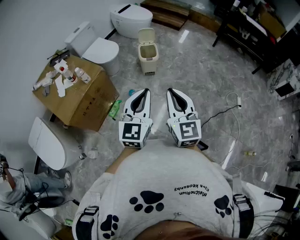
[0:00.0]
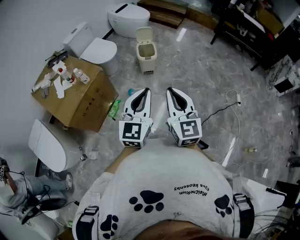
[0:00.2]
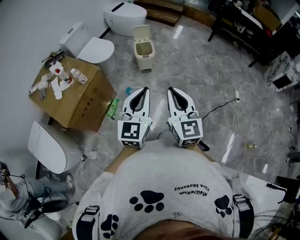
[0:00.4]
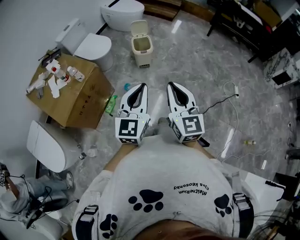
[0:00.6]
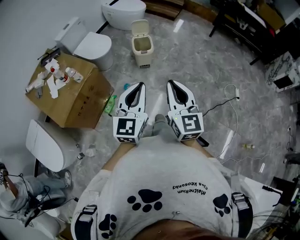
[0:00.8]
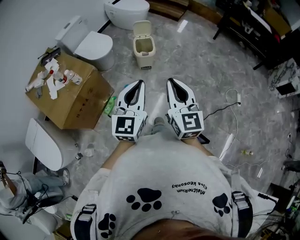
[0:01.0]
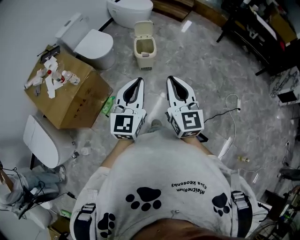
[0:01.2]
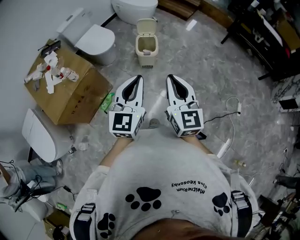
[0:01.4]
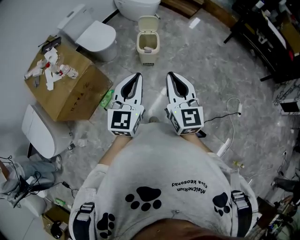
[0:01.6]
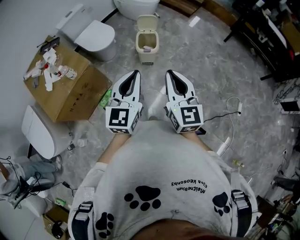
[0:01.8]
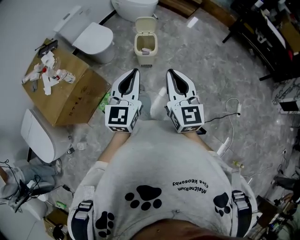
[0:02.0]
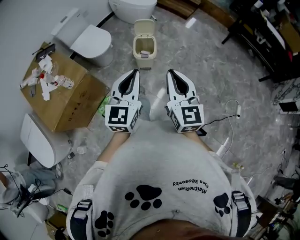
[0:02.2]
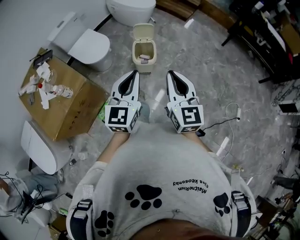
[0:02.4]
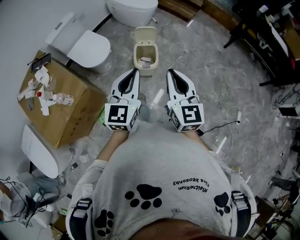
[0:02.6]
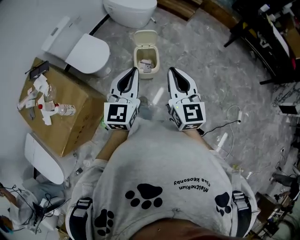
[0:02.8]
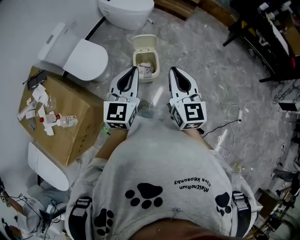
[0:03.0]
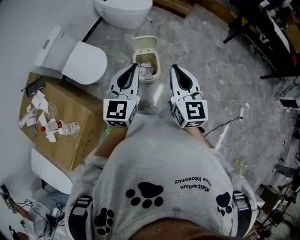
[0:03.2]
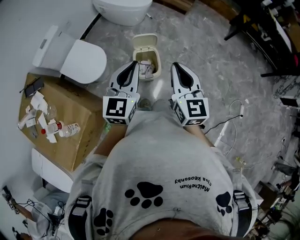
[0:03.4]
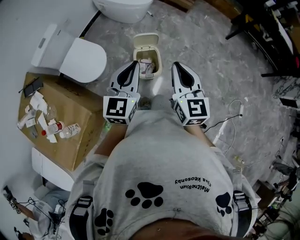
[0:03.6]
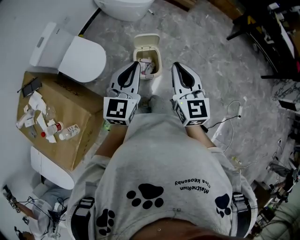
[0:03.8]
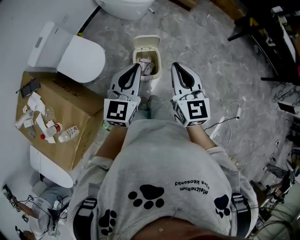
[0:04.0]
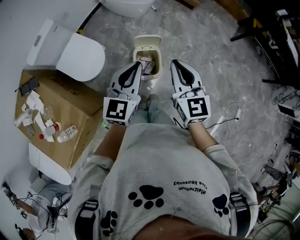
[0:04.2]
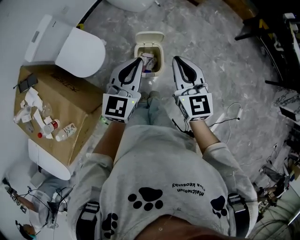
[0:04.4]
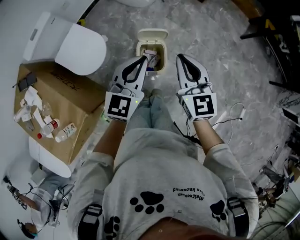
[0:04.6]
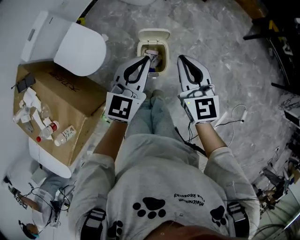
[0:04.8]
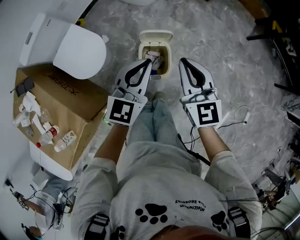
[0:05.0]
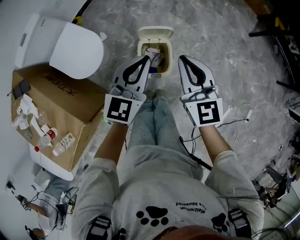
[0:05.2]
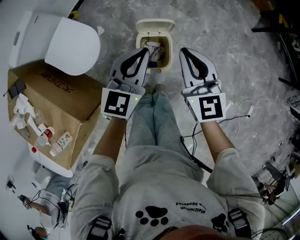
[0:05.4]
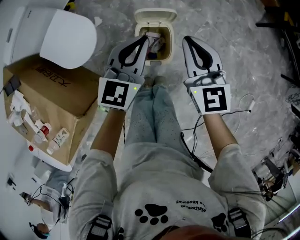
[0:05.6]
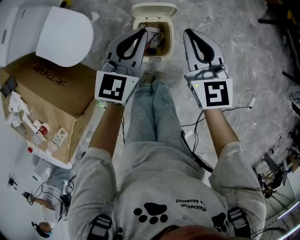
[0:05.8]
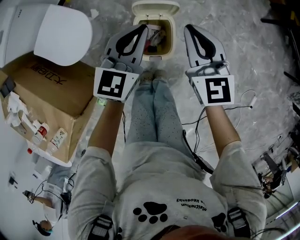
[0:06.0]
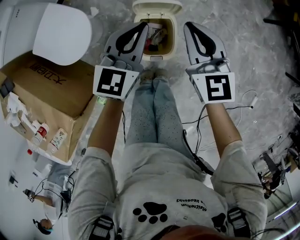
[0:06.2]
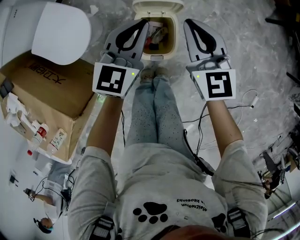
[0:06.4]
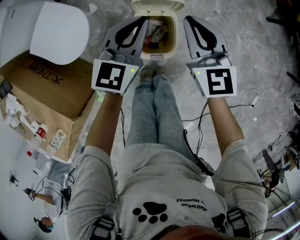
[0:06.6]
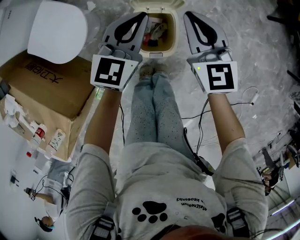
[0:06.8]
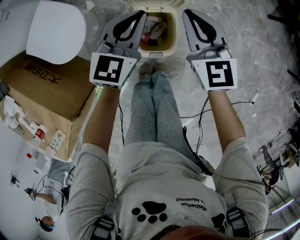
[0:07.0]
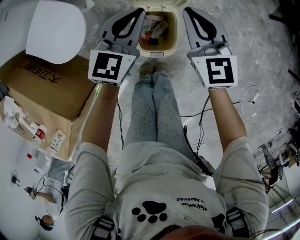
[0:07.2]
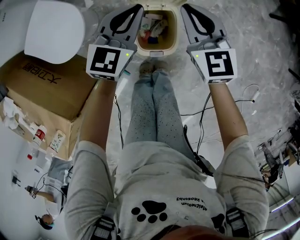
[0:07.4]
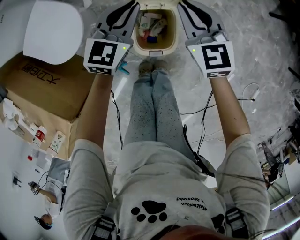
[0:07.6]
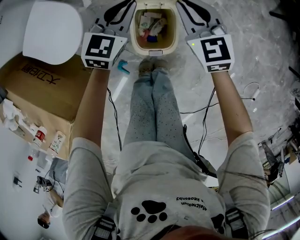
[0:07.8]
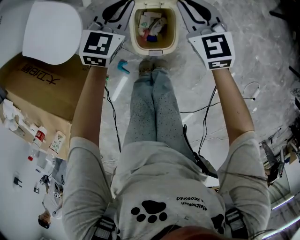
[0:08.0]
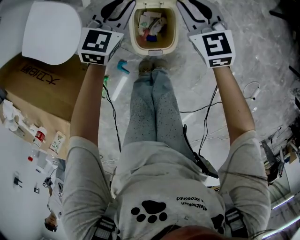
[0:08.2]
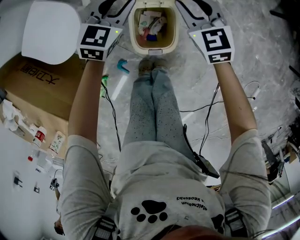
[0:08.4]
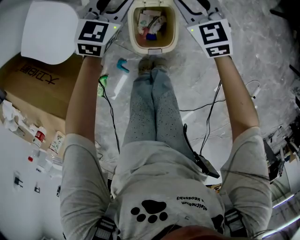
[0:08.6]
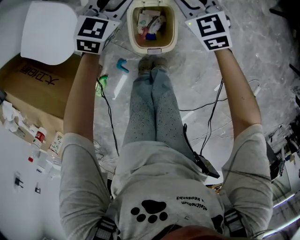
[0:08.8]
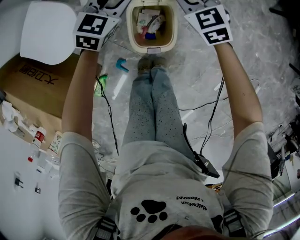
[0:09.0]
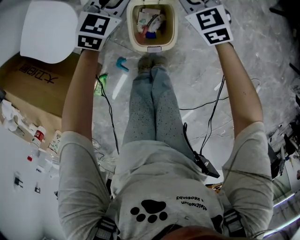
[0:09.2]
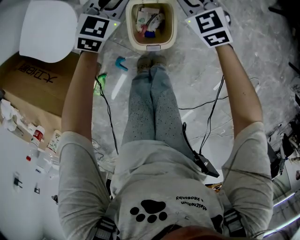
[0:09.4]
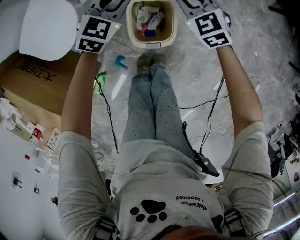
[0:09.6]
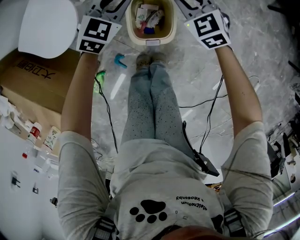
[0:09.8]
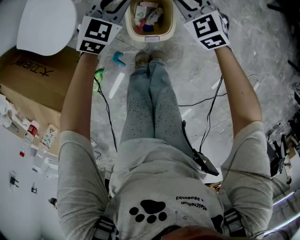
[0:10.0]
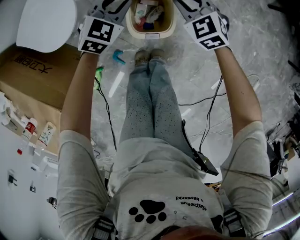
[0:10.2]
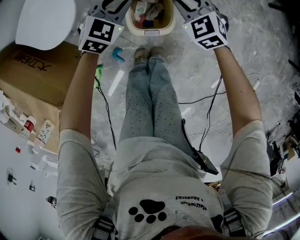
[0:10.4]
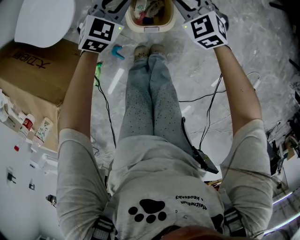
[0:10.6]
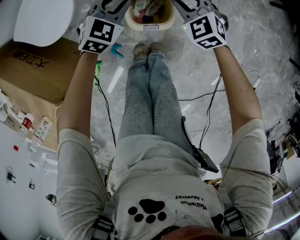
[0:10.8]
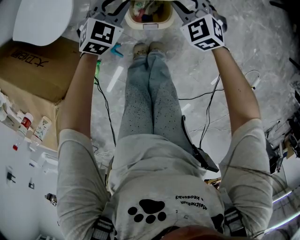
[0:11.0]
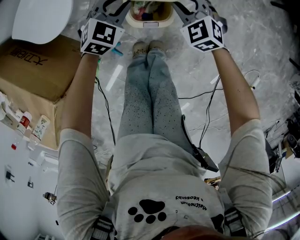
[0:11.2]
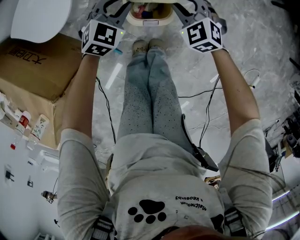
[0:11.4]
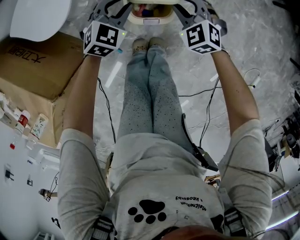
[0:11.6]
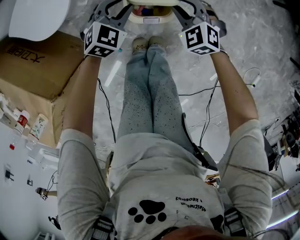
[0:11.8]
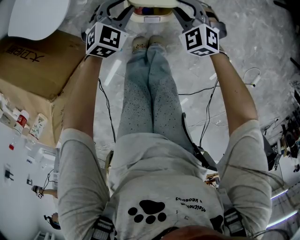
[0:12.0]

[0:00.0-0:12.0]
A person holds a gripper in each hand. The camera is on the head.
0:00.0 to 0:01.6: Both grippers travel together forward, roughly 20 cm.
0:01.6 to 0:03.0: Both grippers travel together forward, roughly 35 cm.
0:03.0 to 0:04.4: Both grippers move forward, about 20 cm.
0:04.4 to 0:06.0: Both grippers move downward and forward, some 25 cm.
0:06.0 to 0:07.6: Both grippers move downward and forward, approximately 15 cm.
0:07.6 to 0:09.0: The right gripper goes about 5 cm downward, and opens. The left gripper ends up some 5 cm from where it was, and opens.
0:09.0 to 0:10.4: Both grippers travel together backward, about 10 cm.
0:10.4 to 0:12.0: Both grippers travel together backward and downward, roughly 10 cm.

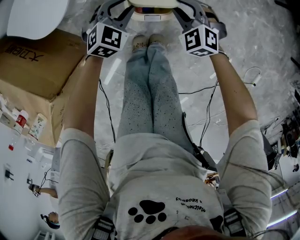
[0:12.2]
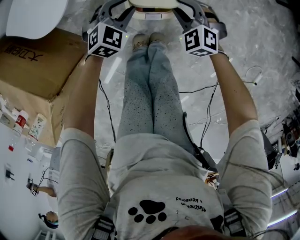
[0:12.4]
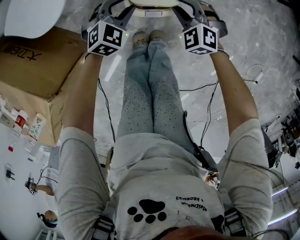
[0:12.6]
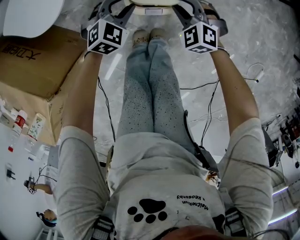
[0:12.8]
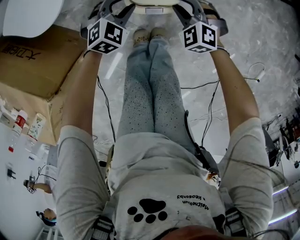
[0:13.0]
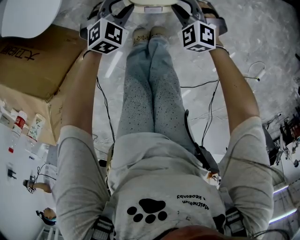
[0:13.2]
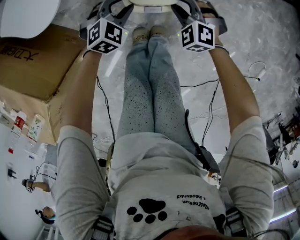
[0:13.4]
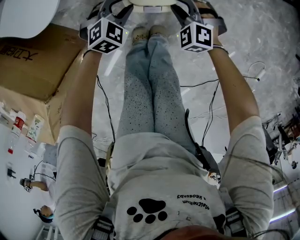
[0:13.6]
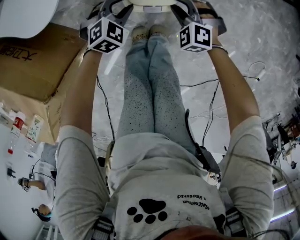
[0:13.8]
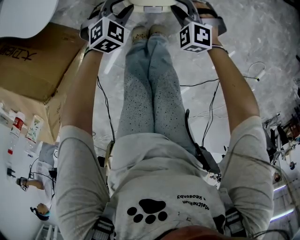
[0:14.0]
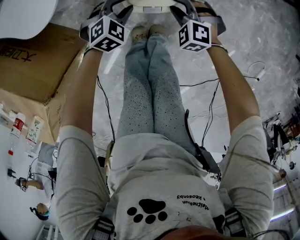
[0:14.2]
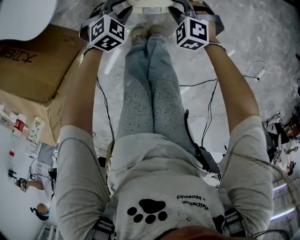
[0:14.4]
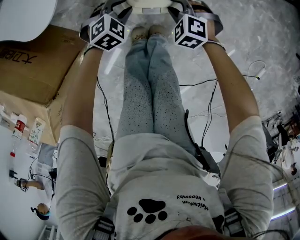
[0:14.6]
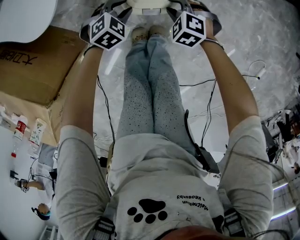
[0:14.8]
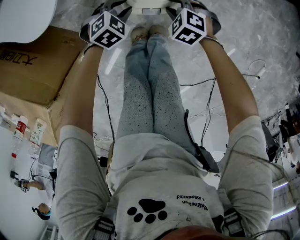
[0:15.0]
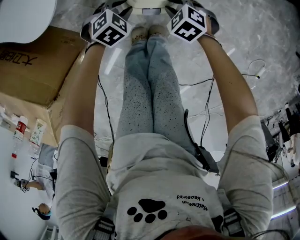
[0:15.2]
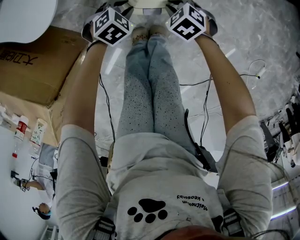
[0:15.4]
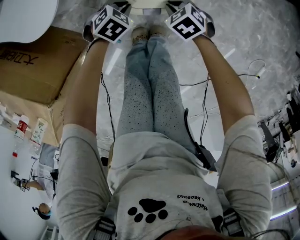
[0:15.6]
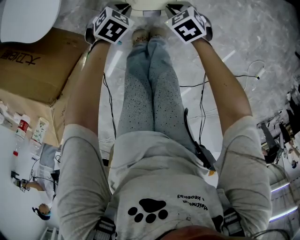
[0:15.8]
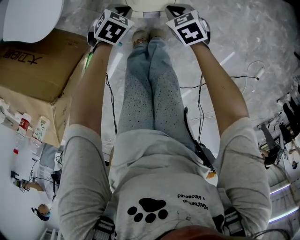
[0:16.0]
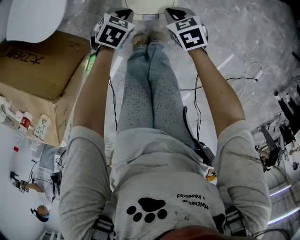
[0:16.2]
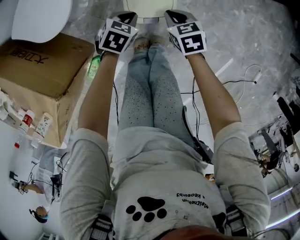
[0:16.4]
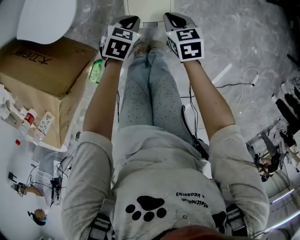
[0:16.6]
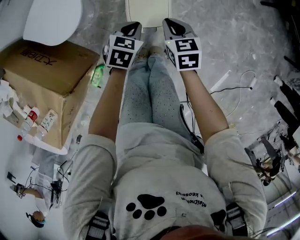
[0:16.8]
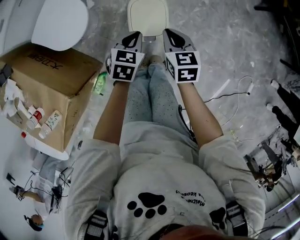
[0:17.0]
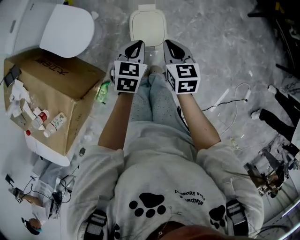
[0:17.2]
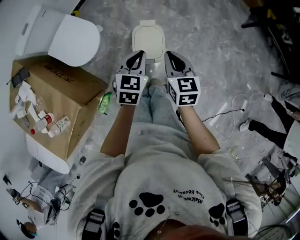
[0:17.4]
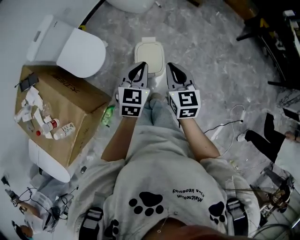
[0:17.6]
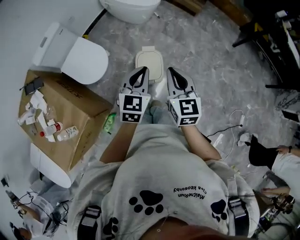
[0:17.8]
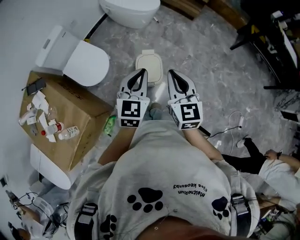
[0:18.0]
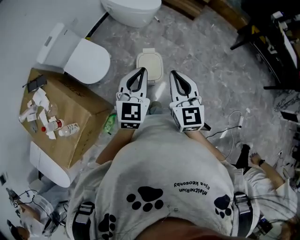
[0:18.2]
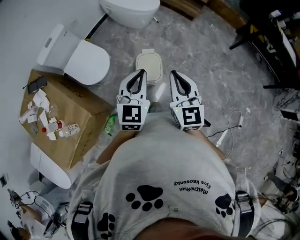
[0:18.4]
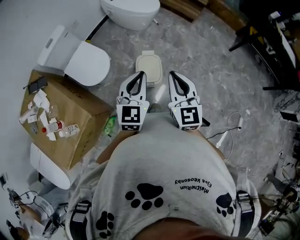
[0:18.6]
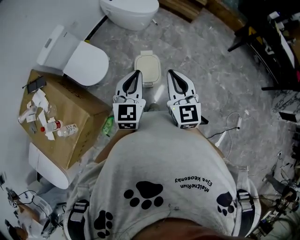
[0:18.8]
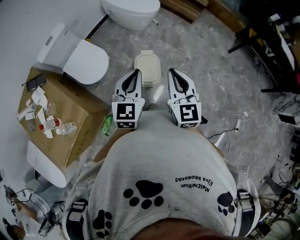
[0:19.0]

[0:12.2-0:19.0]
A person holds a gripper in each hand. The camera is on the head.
0:12.2 to 0:13.6: Both grippers travel together downward, some 5 cm.
0:13.6 to 0:15.0: The right gripper changes its angle by some 20 degrees.
0:15.0 to 0:16.2: The right gripper heads upward, covering some 5 cm, rotates around the line of its fingers by some 40 degrees, clockwise from behind, and closes up, while the left gripper swivels approximately 20 degrees, and closes up.
0:16.2 to 0:17.6: Both grippers travel together upward, roughly 50 cm. The right gripper angles its fingers upward, by approximately 30 degrees, while the left gripper points its fingers some 30 degrees further upward.
0:17.6 to 0:19.0: Both grippers move upward and backward, about 15 cm. The right gripper swivels about 20 degrees.

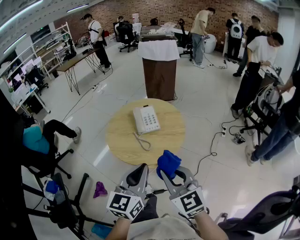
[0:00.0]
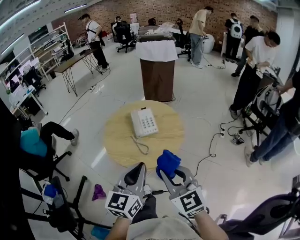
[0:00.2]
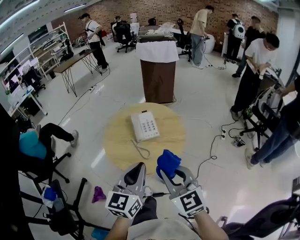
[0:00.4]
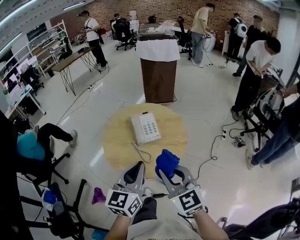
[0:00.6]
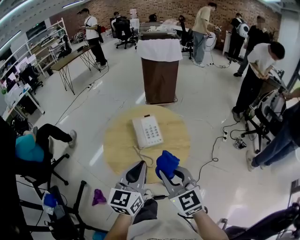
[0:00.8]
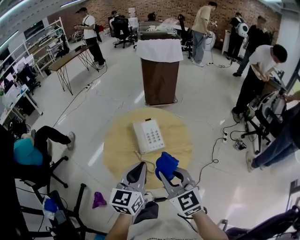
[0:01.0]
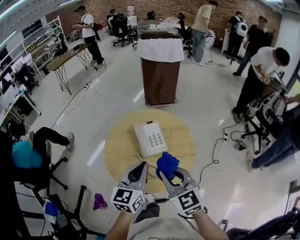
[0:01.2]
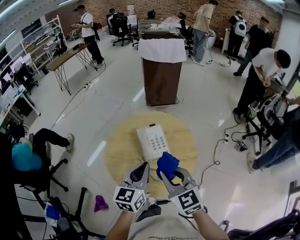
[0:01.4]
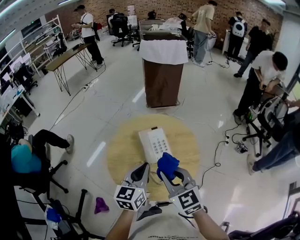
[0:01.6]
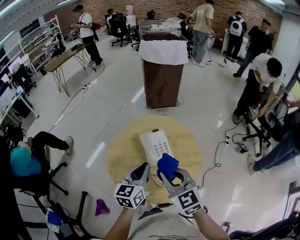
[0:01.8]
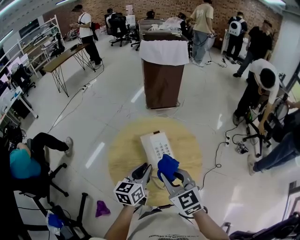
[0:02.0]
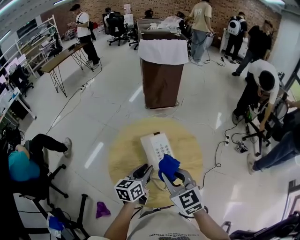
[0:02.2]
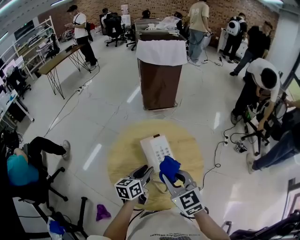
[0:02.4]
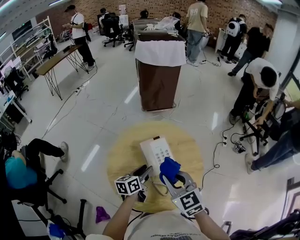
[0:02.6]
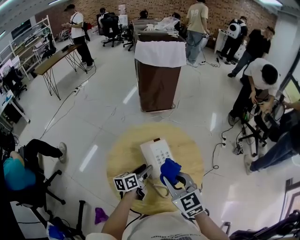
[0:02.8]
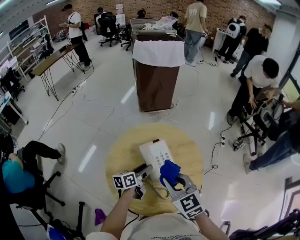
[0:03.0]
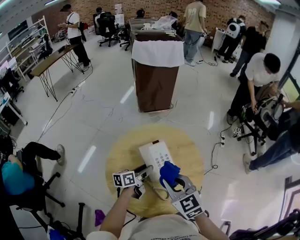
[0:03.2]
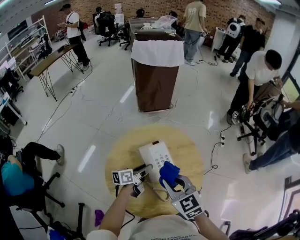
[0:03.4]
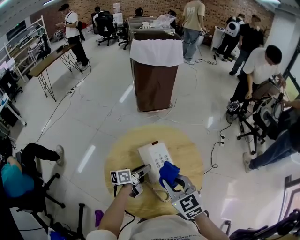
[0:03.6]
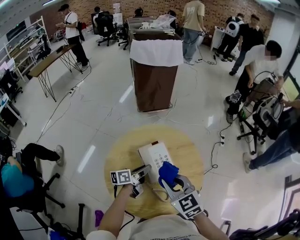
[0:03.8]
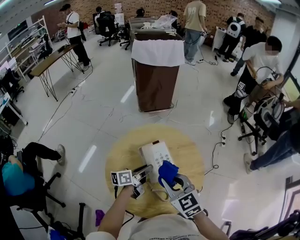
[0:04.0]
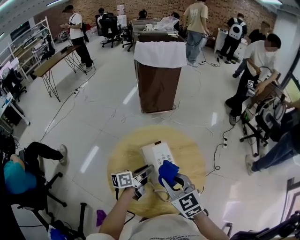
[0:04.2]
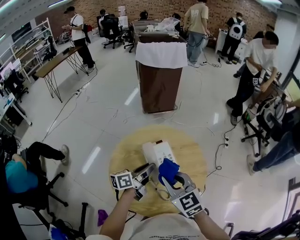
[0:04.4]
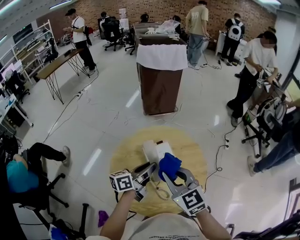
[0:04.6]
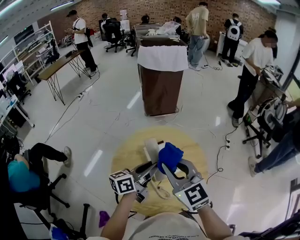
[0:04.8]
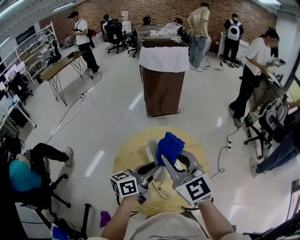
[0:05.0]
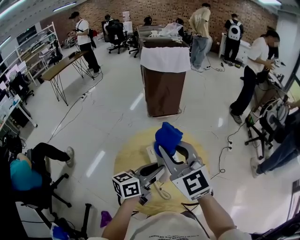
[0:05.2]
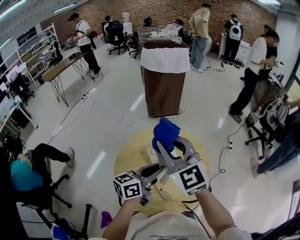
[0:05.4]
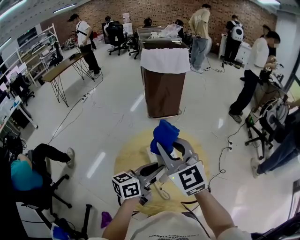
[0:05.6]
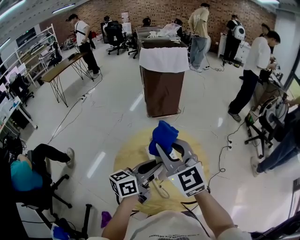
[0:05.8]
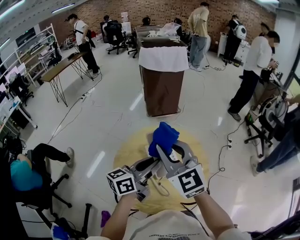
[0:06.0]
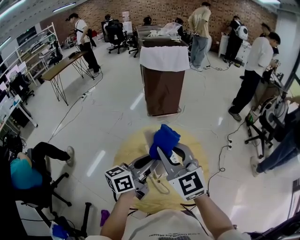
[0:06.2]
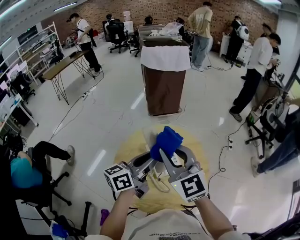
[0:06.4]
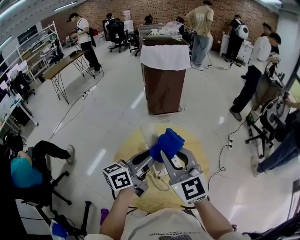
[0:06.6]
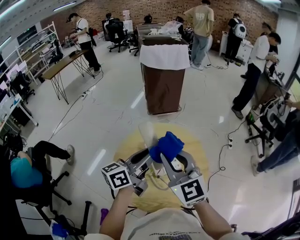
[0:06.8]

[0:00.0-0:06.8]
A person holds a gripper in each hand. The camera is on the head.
0:00.0 to 0:01.4: The grippers both shift forward by roughly 20 cm.
0:01.4 to 0:02.8: The right gripper goes approximately 10 cm forward, while the left gripper travels downward and forward by some 25 cm, rotates about 40 degrees, and opens up.
0:02.8 to 0:04.0: The left gripper closes its fingers.
0:04.0 to 0:05.4: Both grippers move upward, about 20 cm. The left gripper swivels about 30 degrees. Meanwhile the right gripper rotates about 20 degrees.
0:05.4 to 0:06.8: The right gripper shifts by about 5 cm. The left gripper travels upward by some 5 cm.
